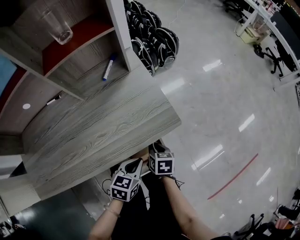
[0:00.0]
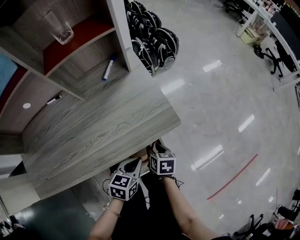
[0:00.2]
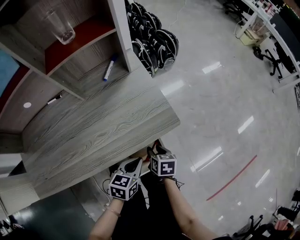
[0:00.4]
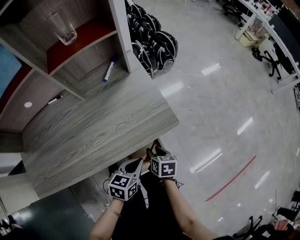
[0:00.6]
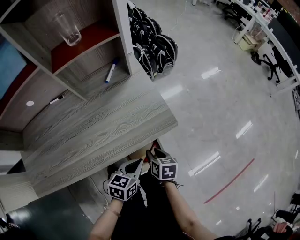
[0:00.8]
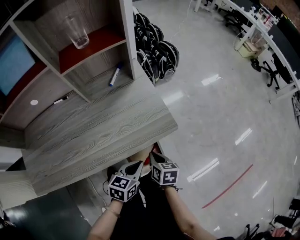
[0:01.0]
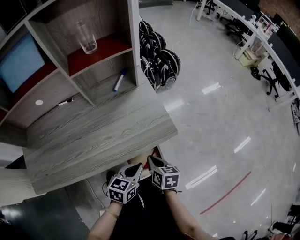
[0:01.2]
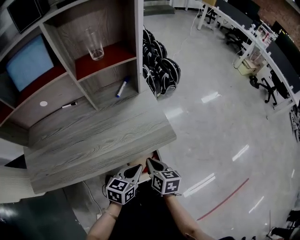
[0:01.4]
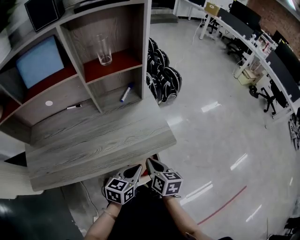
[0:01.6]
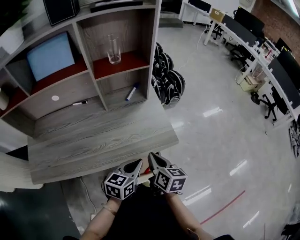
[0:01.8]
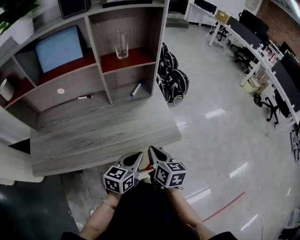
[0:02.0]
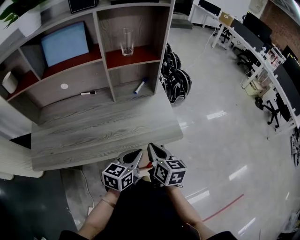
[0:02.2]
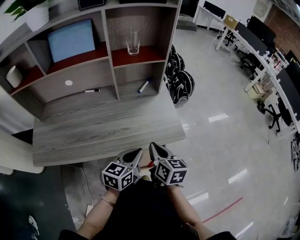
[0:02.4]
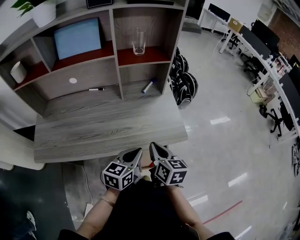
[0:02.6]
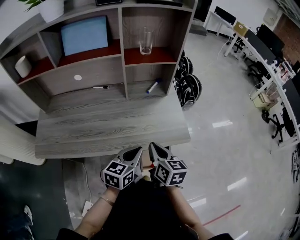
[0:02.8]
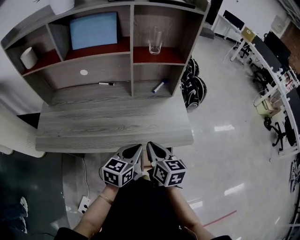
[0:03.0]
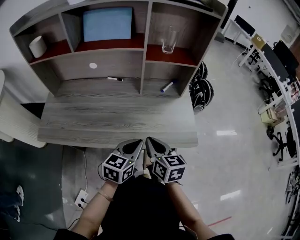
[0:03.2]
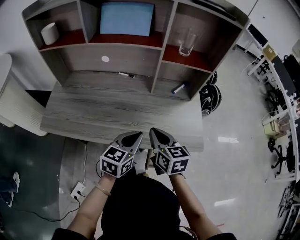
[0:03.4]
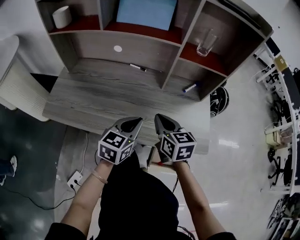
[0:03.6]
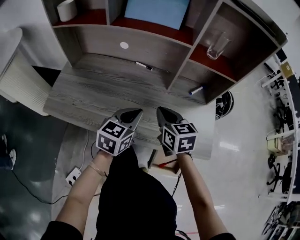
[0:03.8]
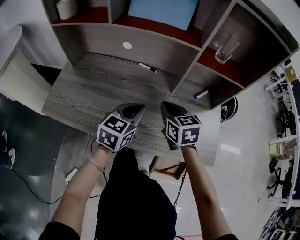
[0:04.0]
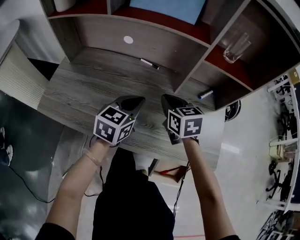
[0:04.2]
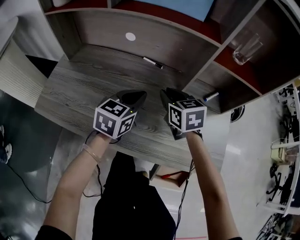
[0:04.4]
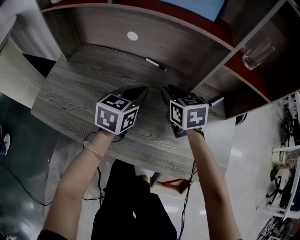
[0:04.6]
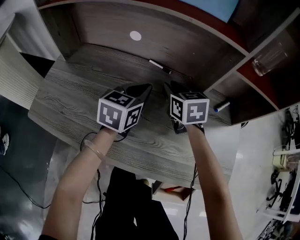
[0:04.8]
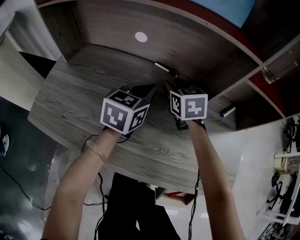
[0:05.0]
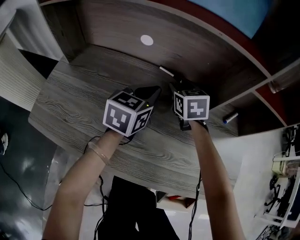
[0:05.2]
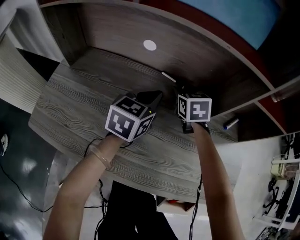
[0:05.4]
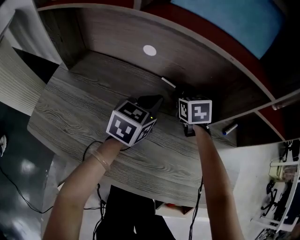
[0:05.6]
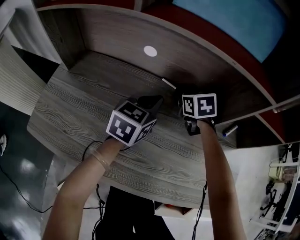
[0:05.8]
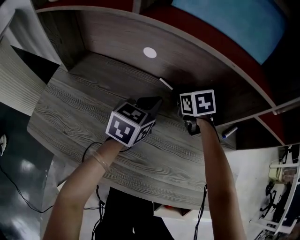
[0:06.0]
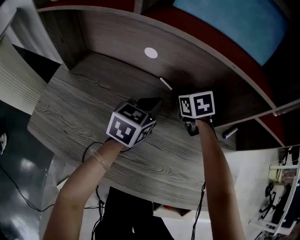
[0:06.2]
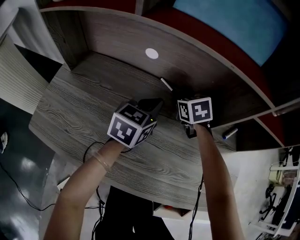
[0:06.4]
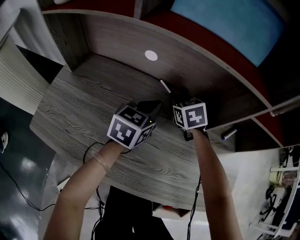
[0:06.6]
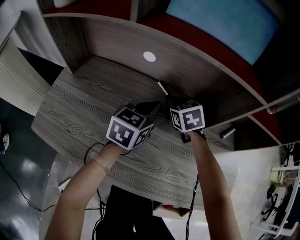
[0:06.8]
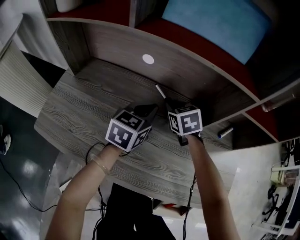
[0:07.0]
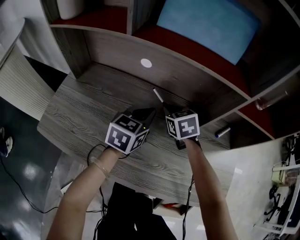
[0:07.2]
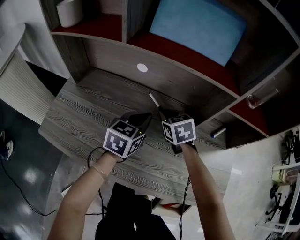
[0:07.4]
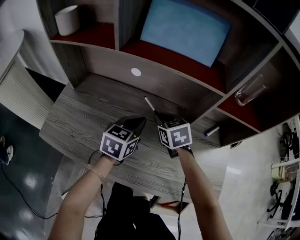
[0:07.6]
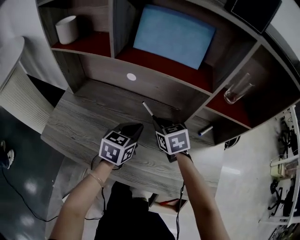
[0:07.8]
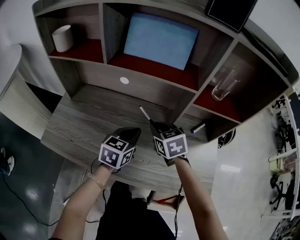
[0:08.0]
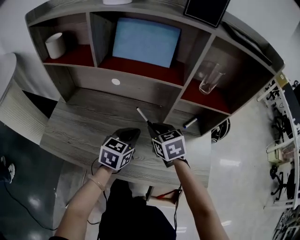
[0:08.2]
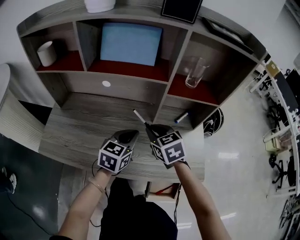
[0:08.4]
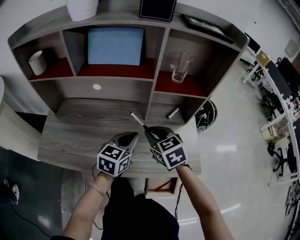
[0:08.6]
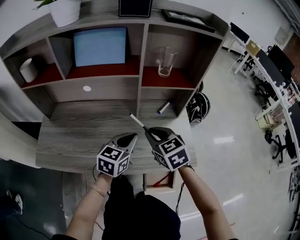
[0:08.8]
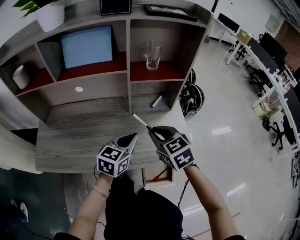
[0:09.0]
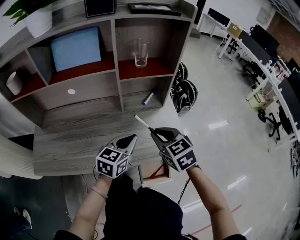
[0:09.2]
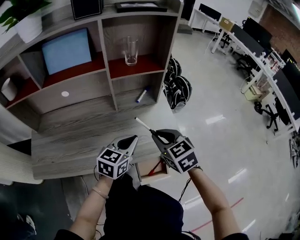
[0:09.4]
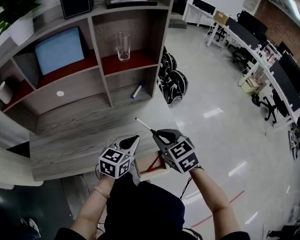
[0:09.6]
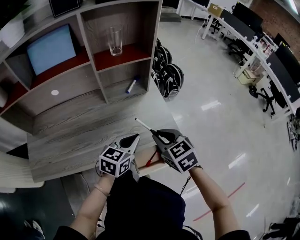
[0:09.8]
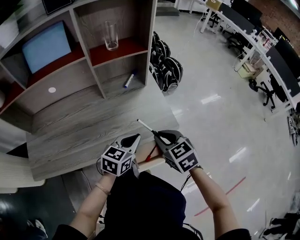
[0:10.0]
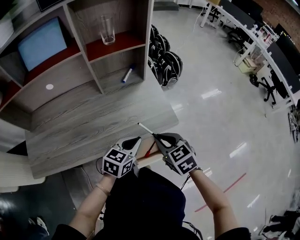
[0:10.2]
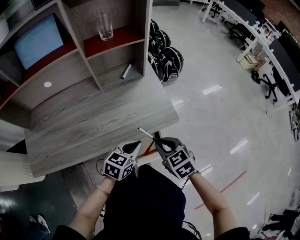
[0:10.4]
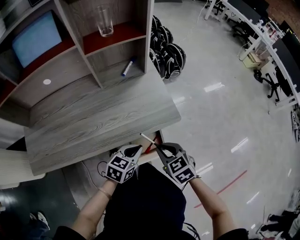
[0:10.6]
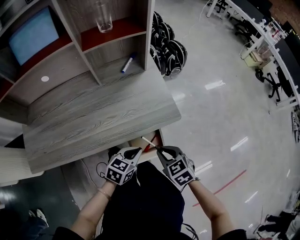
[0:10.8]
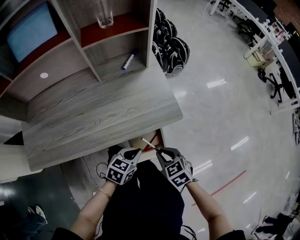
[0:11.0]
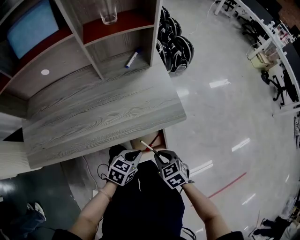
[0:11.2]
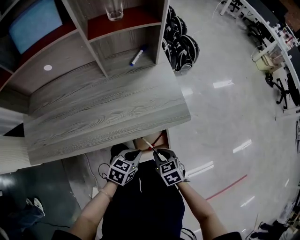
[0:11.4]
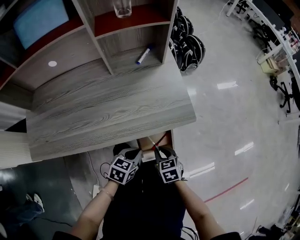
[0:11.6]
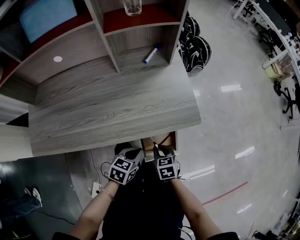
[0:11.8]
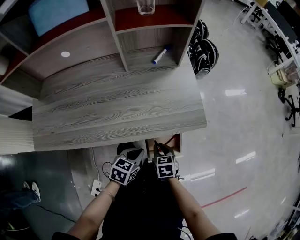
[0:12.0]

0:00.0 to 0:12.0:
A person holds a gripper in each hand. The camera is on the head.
0:00.0 to 0:01.6: The left gripper heads upward, covering about 10 cm. The right gripper moves upward, some 20 cm, and swivels approximately 20 degrees.
0:01.6 to 0:03.0: The grippers both shift to the left and upward by approximately 10 cm. The right gripper turns by some 20 degrees.
0:03.0 to 0:04.4: Both grippers travel together forward and to the left, some 30 cm. The right gripper swivels approximately 40 degrees.
0:04.4 to 0:06.0: The right gripper travels forward and downward by about 20 cm, while the left gripper heads forward, covering about 10 cm.
0:06.0 to 0:07.6: The right gripper goes some 15 cm backward and upward. The left gripper is displaced backward by some 5 cm.
0:07.6 to 0:09.0: The right gripper goes approximately 30 cm backward, to the right and upward, while the left gripper goes approximately 25 cm to the right and backward, and swivels approximately 20 degrees.
0:09.0 to 0:10.4: The left gripper goes approximately 20 cm to the right, downward and backward, and turns by about 20 degrees; the right gripper moves backward, to the right and downward, approximately 25 cm.
0:10.4 to 0:12.0: The left gripper goes about 15 cm downward, to the left and backward, while the right gripper heads downward, covering about 20 cm.

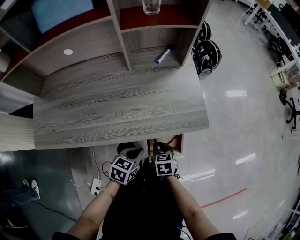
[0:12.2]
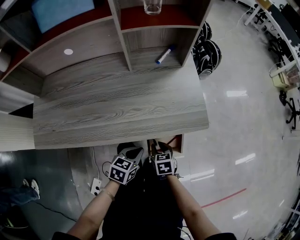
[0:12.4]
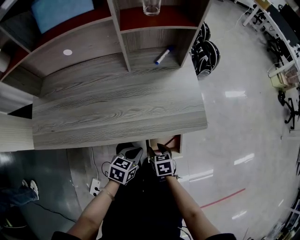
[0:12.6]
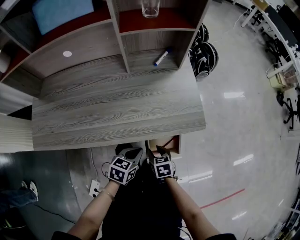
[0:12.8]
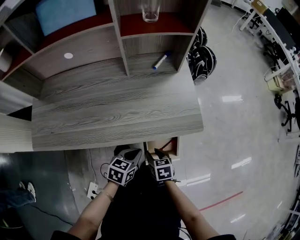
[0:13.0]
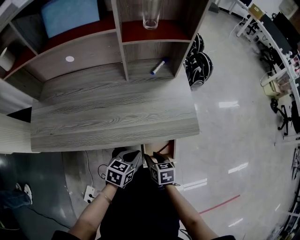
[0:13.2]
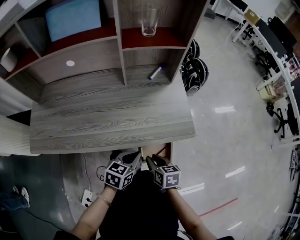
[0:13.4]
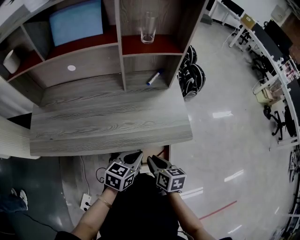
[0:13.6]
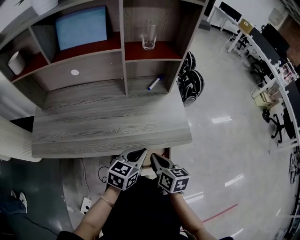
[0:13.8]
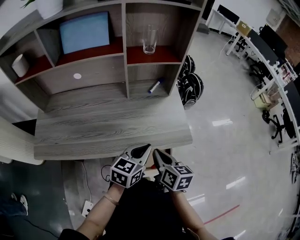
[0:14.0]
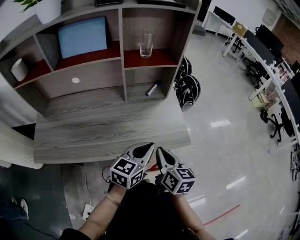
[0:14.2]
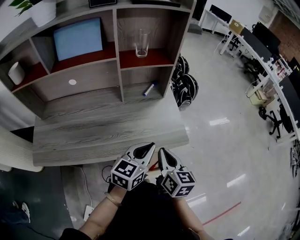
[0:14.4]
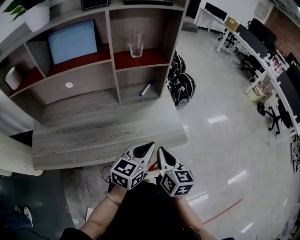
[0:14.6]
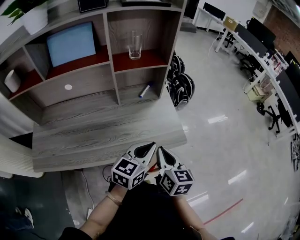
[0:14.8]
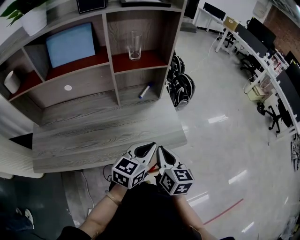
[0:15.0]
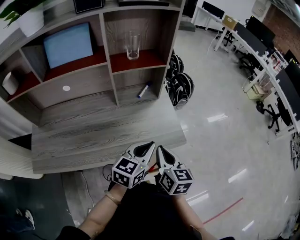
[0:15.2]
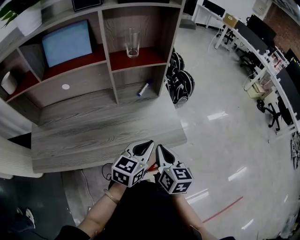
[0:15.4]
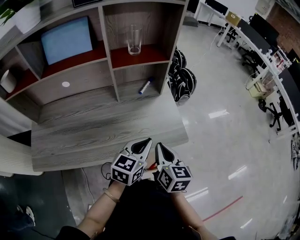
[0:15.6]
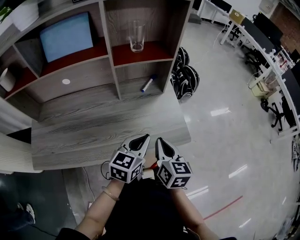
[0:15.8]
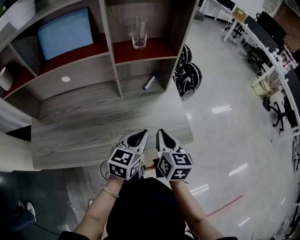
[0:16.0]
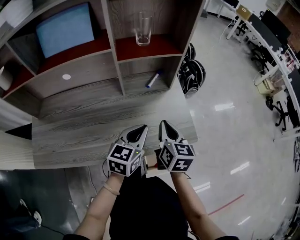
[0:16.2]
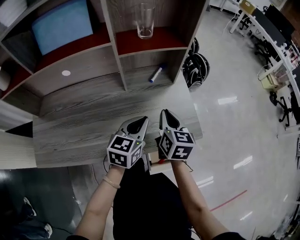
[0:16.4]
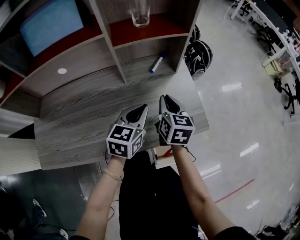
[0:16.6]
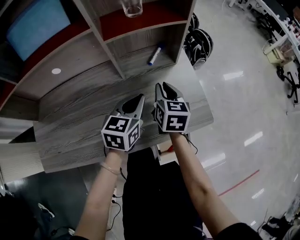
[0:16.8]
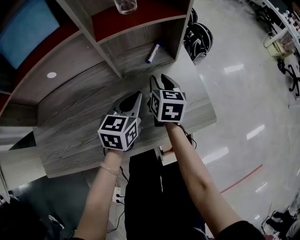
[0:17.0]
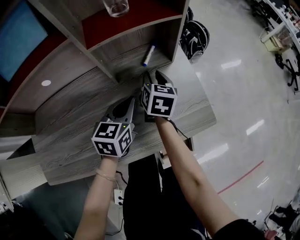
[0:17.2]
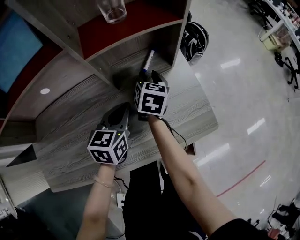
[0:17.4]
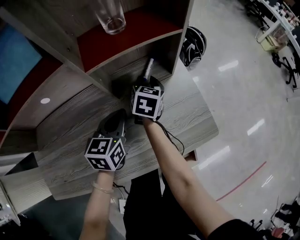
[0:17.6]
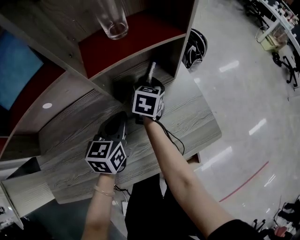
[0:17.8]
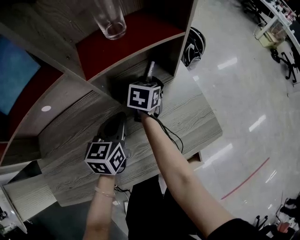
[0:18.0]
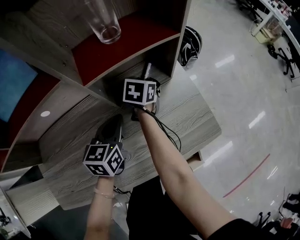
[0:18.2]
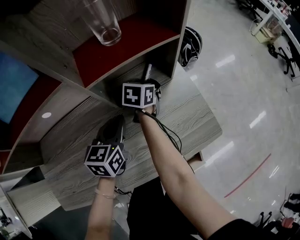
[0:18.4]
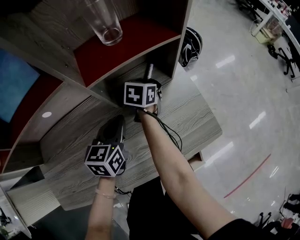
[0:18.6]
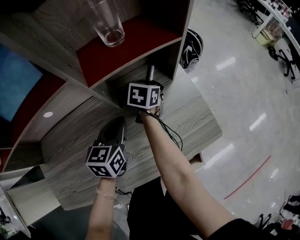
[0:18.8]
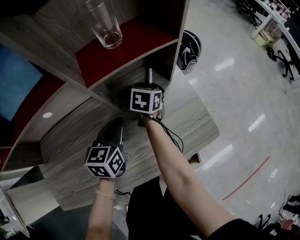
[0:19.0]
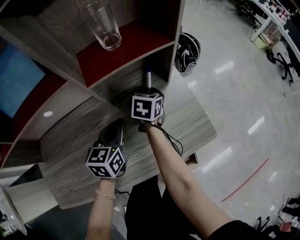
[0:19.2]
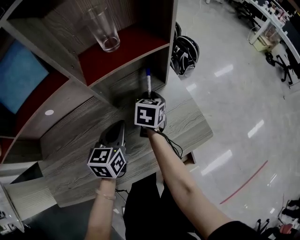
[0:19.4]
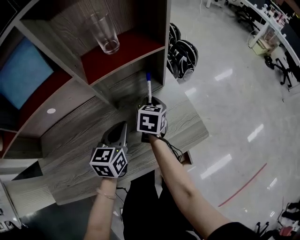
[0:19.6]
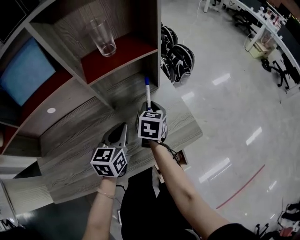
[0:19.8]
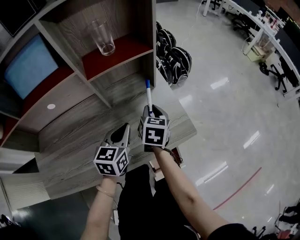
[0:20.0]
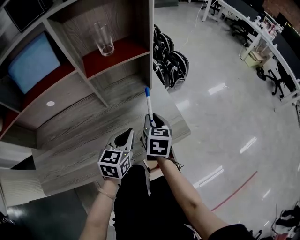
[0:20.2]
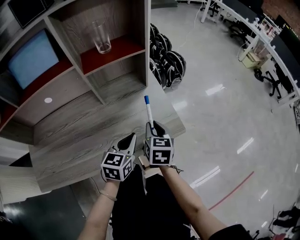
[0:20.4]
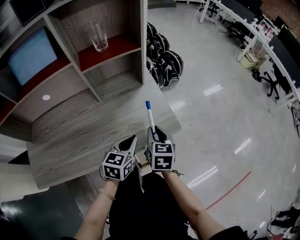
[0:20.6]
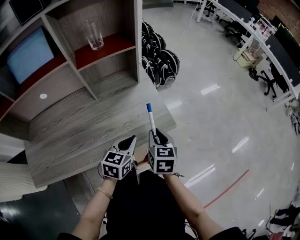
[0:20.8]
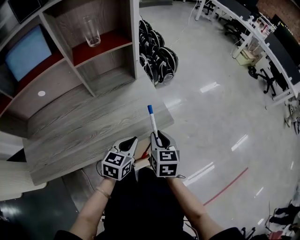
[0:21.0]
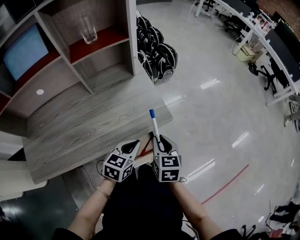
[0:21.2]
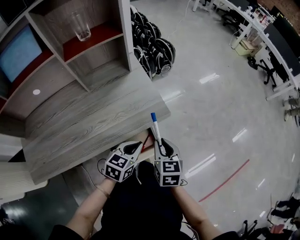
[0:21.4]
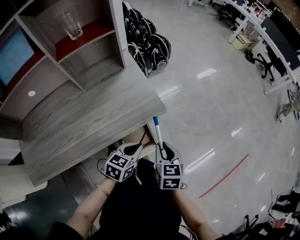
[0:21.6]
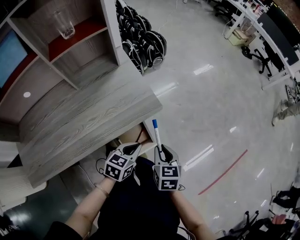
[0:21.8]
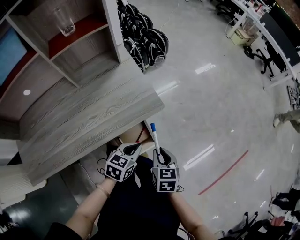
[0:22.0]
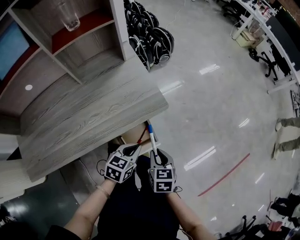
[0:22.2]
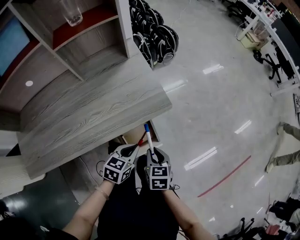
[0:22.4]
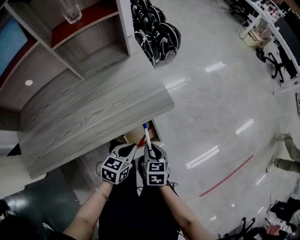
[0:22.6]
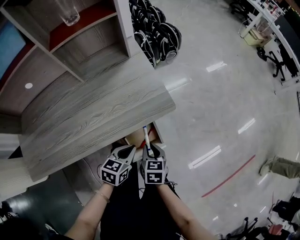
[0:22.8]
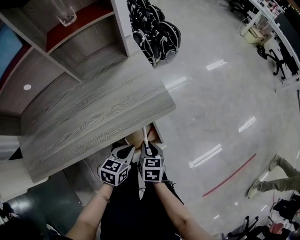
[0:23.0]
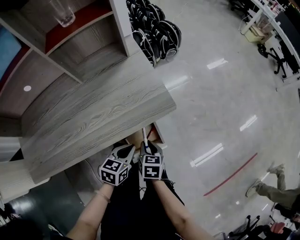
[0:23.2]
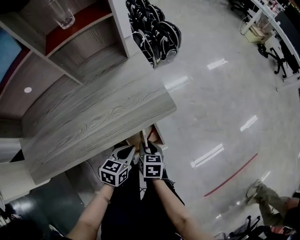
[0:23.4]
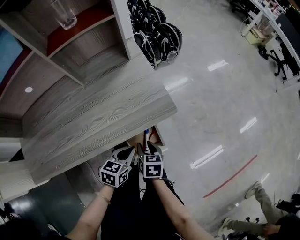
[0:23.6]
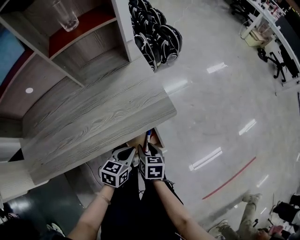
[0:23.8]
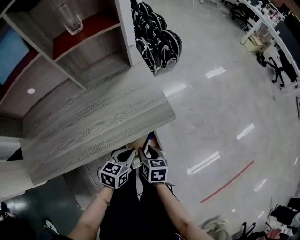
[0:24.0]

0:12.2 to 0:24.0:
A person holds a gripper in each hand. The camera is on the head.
0:12.2 to 0:13.6: The two grippers go some 10 cm upward. The right gripper rotates about 20 degrees.
0:13.6 to 0:15.2: The grippers both shift upward and forward by some 15 cm. The right gripper turns by about 30 degrees.
0:15.2 to 0:16.6: The right gripper is displaced forward and to the left by some 15 cm. Meanwhile the left gripper shifts some 15 cm to the left, forward and downward.
0:16.6 to 0:18.2: The left gripper moves to the left and forward, about 10 cm. Meanwhile the right gripper heads forward, downward and to the left, covering roughly 20 cm, turns by roughly 30 degrees, and opens its fingers.
0:18.2 to 0:19.6: The right gripper moves backward and to the right, some 10 cm, and closes. The left gripper shifts by approximately 5 cm.
0:19.6 to 0:21.0: The left gripper travels to the right and backward by about 20 cm. Meanwhile the right gripper moves backward and to the right, approximately 30 cm.
0:21.0 to 0:22.6: The grippers both shift downward and backward by some 15 cm.
0:22.6 to 0:24.0: The grippers move only a little.
